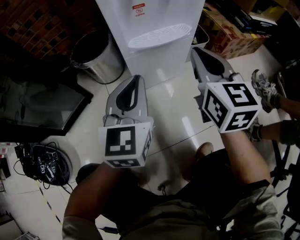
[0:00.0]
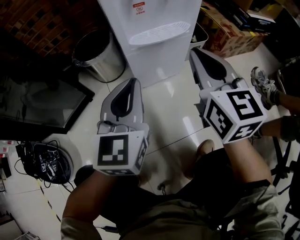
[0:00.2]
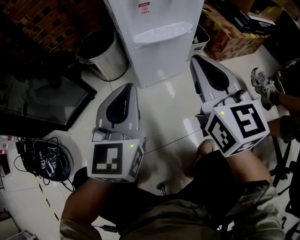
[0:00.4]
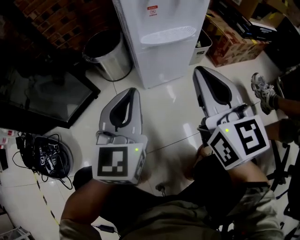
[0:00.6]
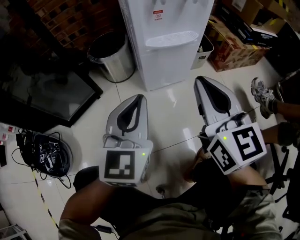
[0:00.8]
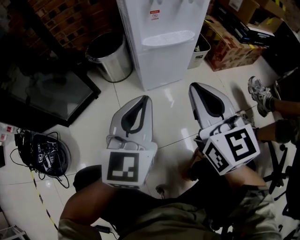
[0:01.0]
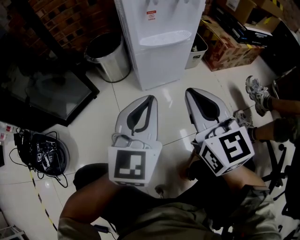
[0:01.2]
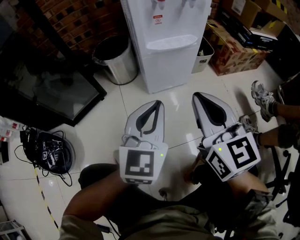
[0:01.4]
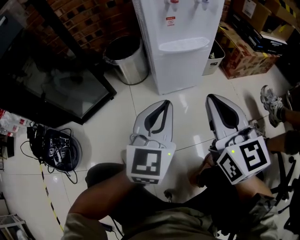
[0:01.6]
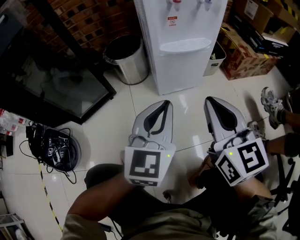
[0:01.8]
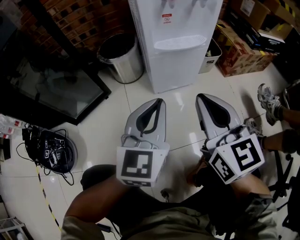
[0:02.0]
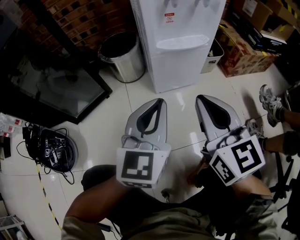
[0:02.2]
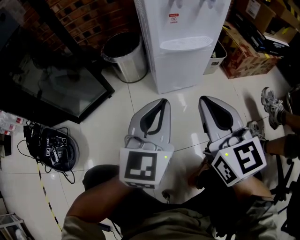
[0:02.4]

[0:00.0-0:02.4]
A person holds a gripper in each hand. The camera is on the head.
0:00.0 to 0:01.2: Both grippers move backward, some 15 cm.
0:01.2 to 0:02.4: There are only small adjustments of the grippers.

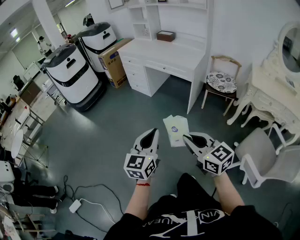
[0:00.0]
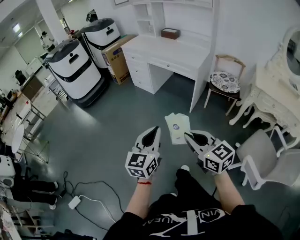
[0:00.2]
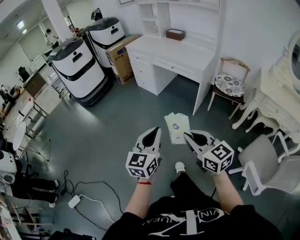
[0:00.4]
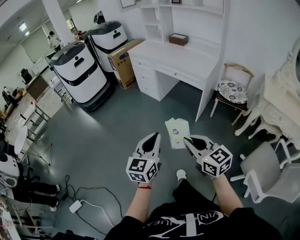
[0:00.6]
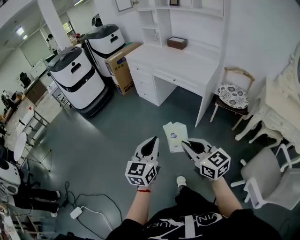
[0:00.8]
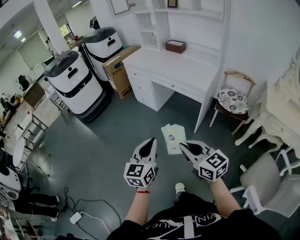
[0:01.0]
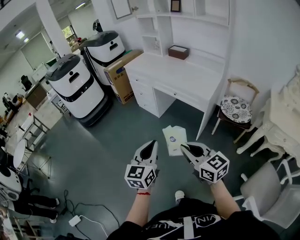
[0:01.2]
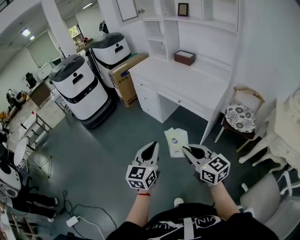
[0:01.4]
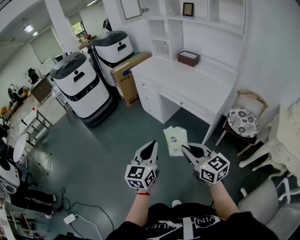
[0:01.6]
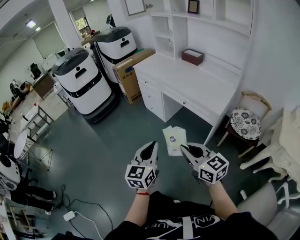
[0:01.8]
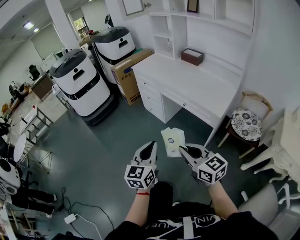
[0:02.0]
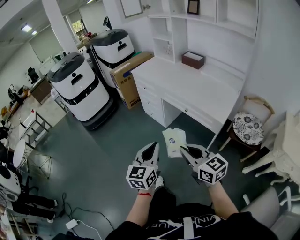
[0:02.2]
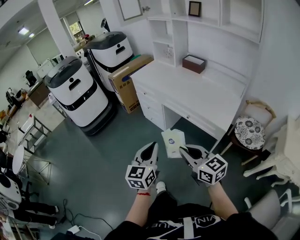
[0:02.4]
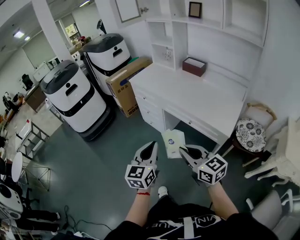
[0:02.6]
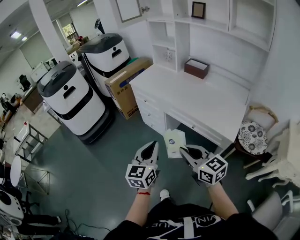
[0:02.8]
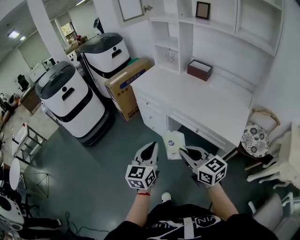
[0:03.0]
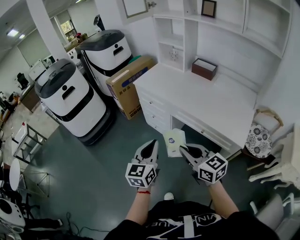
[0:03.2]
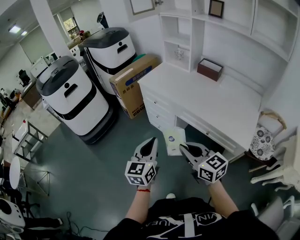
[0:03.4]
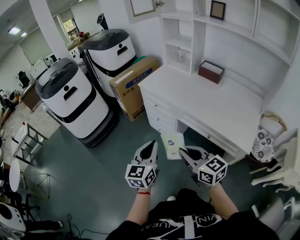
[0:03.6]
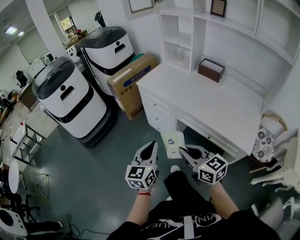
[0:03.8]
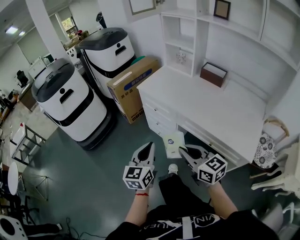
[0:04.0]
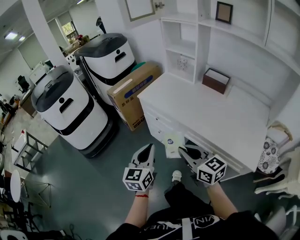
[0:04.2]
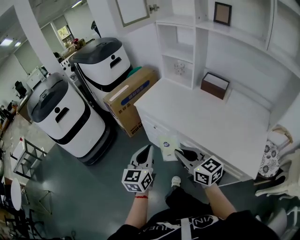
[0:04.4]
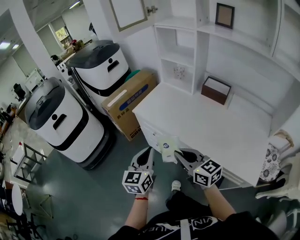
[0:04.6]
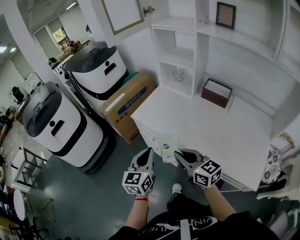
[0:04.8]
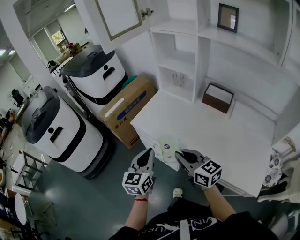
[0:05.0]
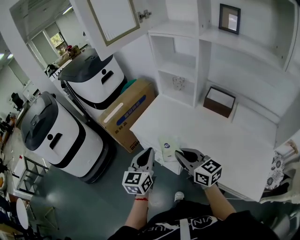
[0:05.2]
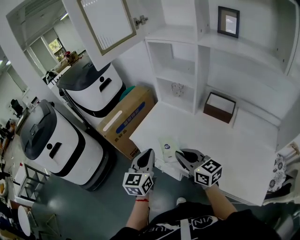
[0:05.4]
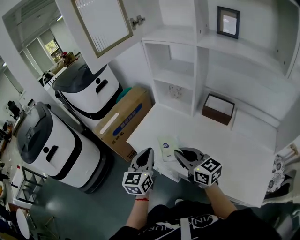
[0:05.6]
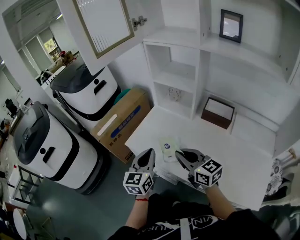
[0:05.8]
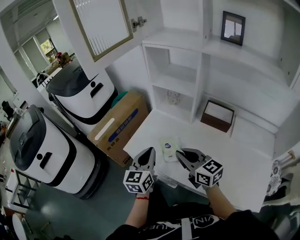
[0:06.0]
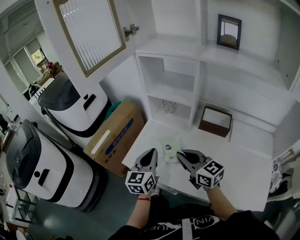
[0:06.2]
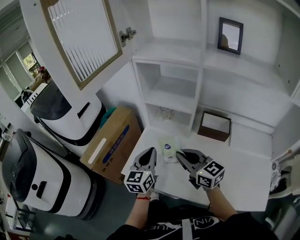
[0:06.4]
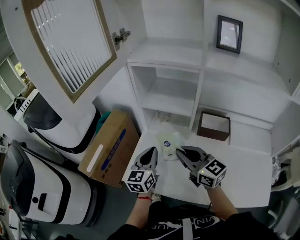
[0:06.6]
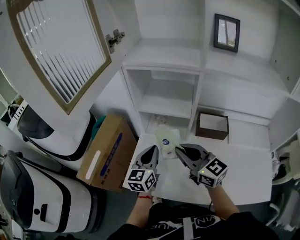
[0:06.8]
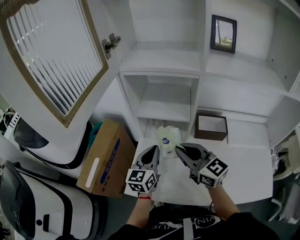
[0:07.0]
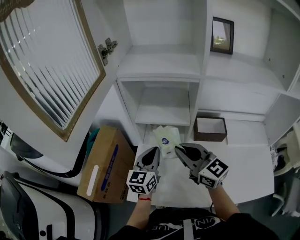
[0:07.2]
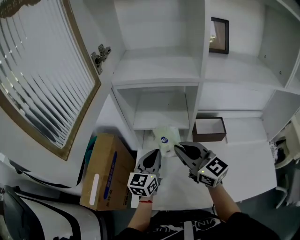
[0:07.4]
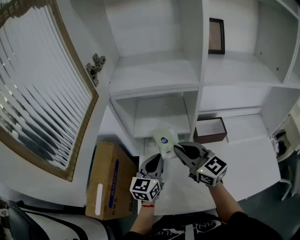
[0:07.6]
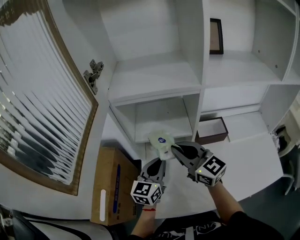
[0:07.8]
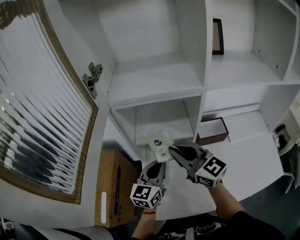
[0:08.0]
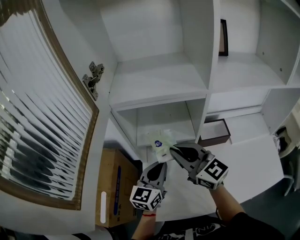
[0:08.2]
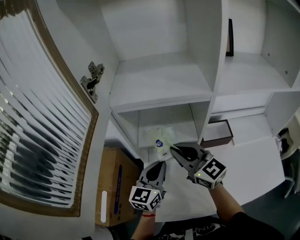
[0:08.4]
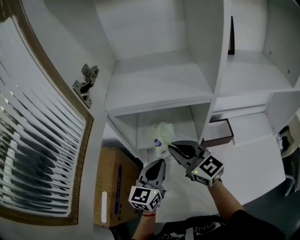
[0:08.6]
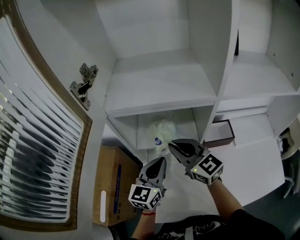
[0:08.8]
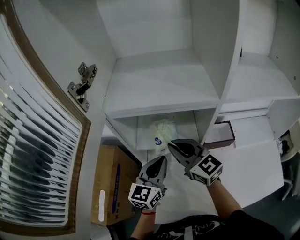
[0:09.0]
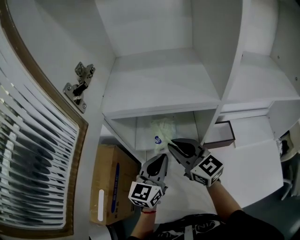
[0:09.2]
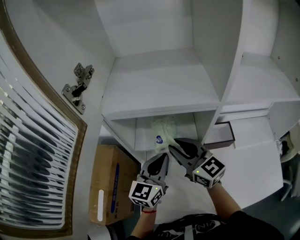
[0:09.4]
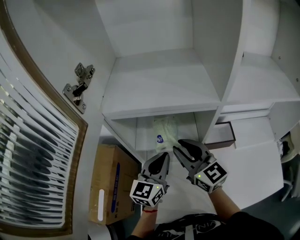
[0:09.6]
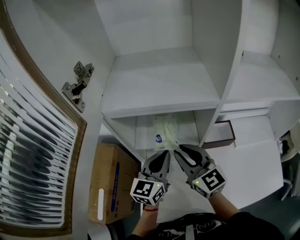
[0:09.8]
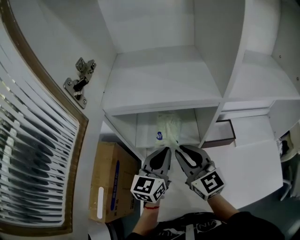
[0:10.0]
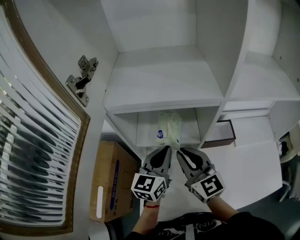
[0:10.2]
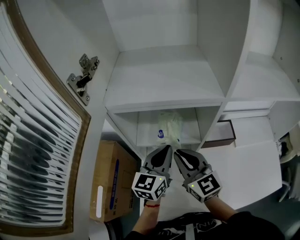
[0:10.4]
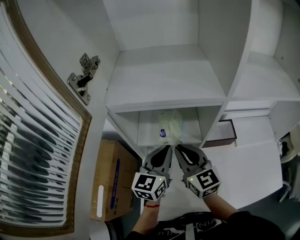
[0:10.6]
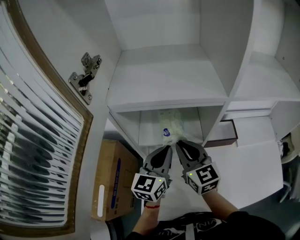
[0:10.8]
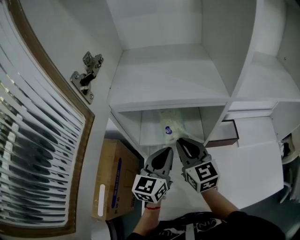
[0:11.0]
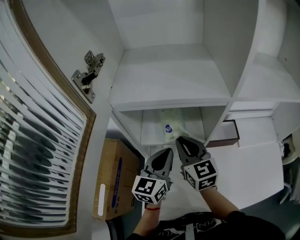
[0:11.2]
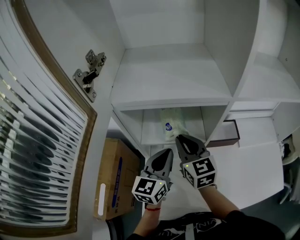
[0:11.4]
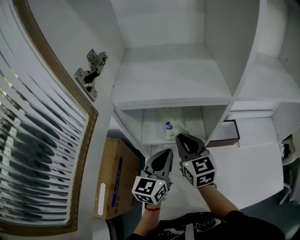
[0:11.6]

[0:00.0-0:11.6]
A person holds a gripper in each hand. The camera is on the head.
0:00.0 to 0:01.4: Both grippers move forward, roughly 30 cm.
0:01.4 to 0:02.8: The two grippers go about 30 cm forward.
0:02.8 to 0:04.4: The two grippers go approximately 30 cm forward.
0:04.4 to 0:05.8: Both grippers travel together forward, some 25 cm.
0:05.8 to 0:07.2: The right gripper changes place by some 25 cm, and swivels some 30 degrees. Meanwhile the left gripper changes place by roughly 25 cm, and changes its angle by roughly 30 degrees.
0:07.2 to 0:08.8: The left gripper travels forward by some 5 cm. Meanwhile the right gripper moves forward, roughly 15 cm.
0:08.8 to 0:10.2: There are only small adjustments of the grippers.
0:10.2 to 0:11.6: The right gripper shifts some 5 cm forward.

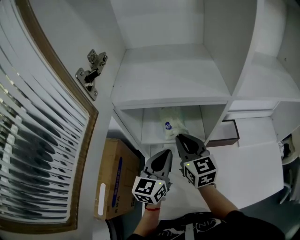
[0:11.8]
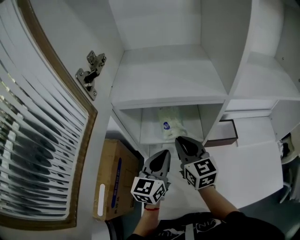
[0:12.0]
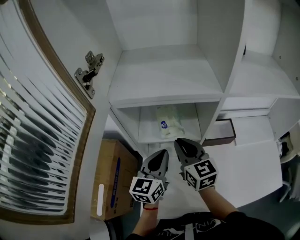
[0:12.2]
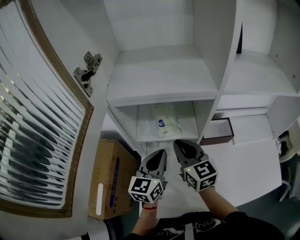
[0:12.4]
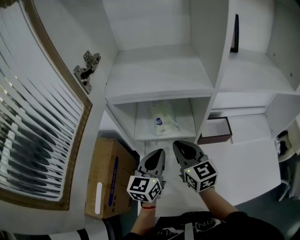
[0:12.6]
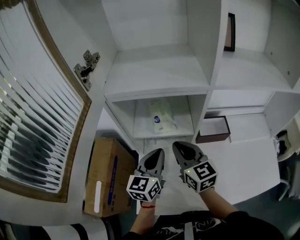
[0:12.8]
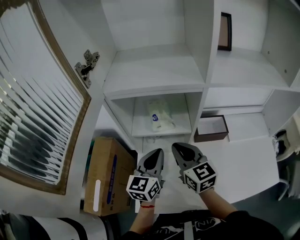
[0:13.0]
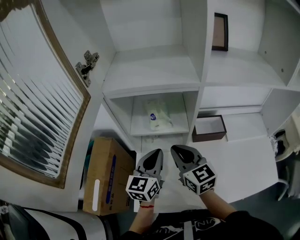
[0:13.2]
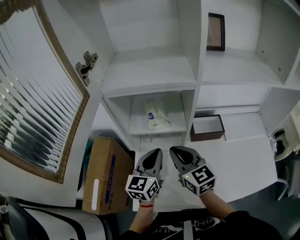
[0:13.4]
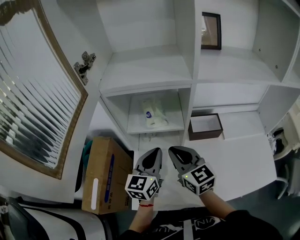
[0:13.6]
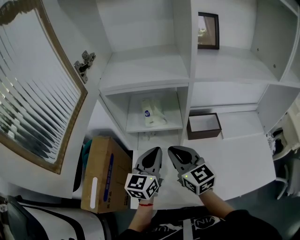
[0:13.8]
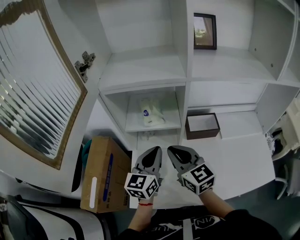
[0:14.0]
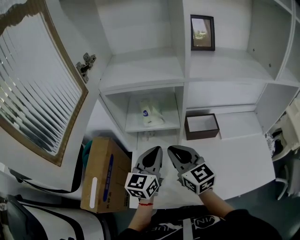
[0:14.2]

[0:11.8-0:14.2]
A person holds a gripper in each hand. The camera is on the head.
0:11.8 to 0:13.0: The right gripper travels backward by roughly 10 cm.
0:13.0 to 0:14.2: The left gripper changes place by roughly 5 cm. The right gripper shifts approximately 5 cm backward.

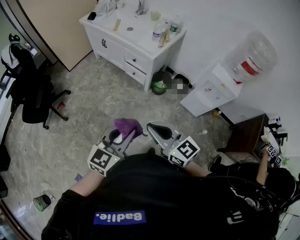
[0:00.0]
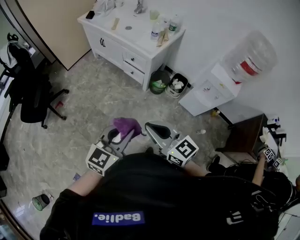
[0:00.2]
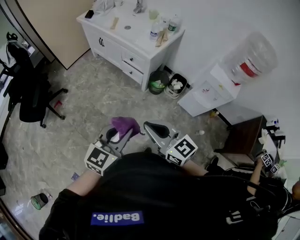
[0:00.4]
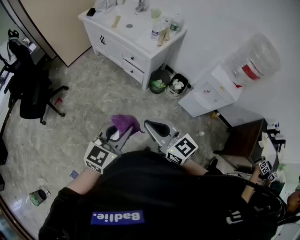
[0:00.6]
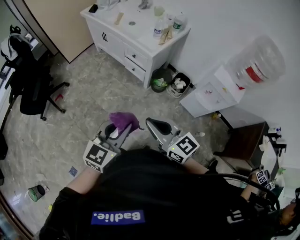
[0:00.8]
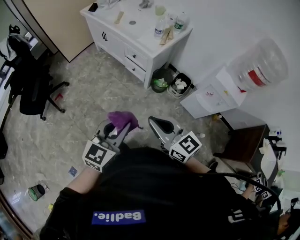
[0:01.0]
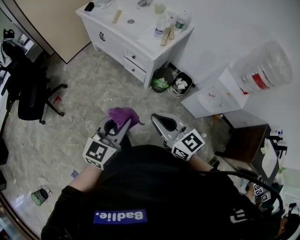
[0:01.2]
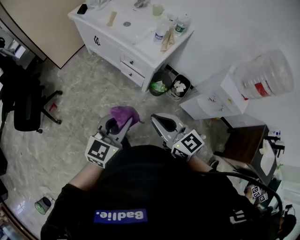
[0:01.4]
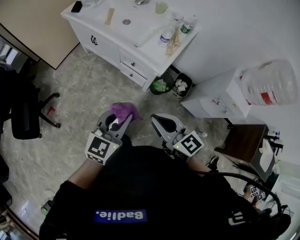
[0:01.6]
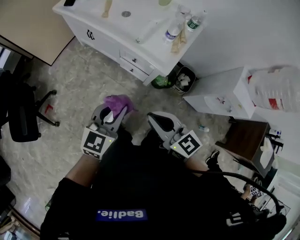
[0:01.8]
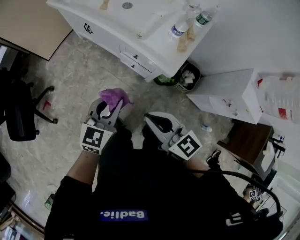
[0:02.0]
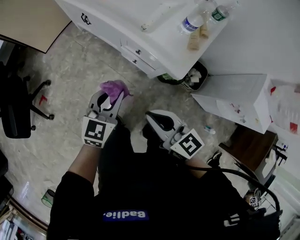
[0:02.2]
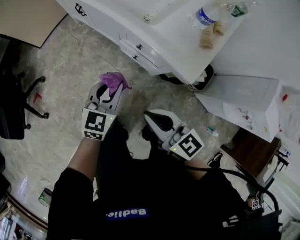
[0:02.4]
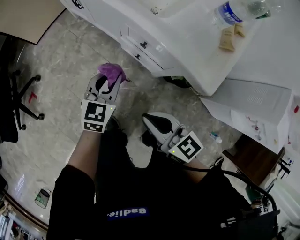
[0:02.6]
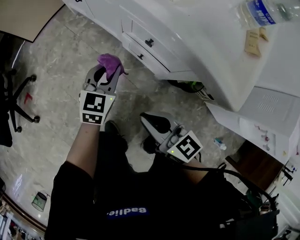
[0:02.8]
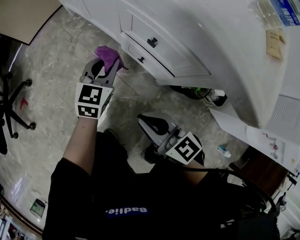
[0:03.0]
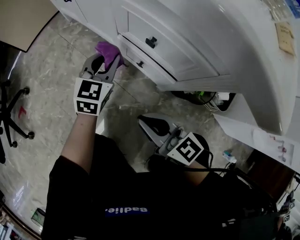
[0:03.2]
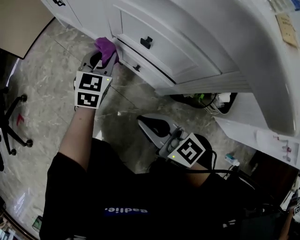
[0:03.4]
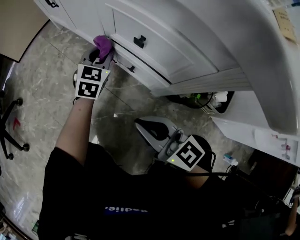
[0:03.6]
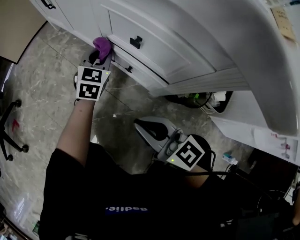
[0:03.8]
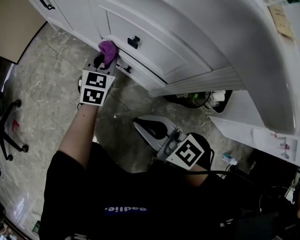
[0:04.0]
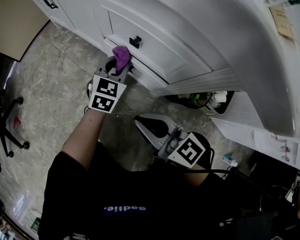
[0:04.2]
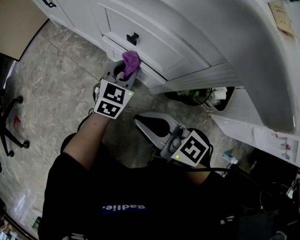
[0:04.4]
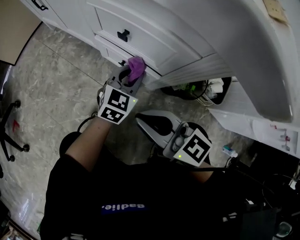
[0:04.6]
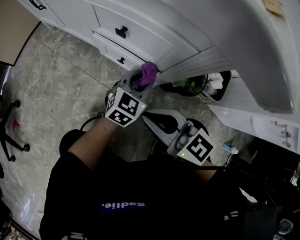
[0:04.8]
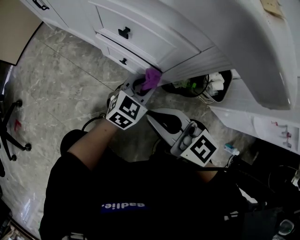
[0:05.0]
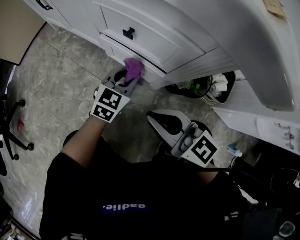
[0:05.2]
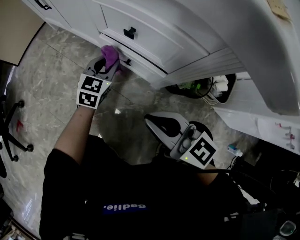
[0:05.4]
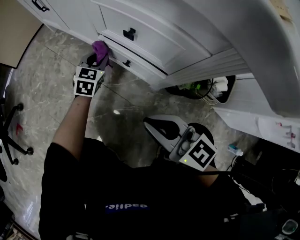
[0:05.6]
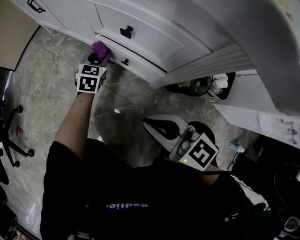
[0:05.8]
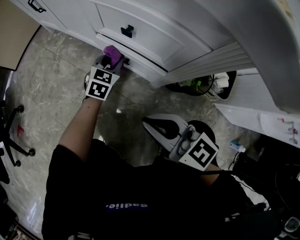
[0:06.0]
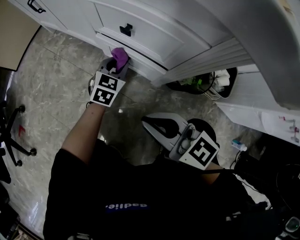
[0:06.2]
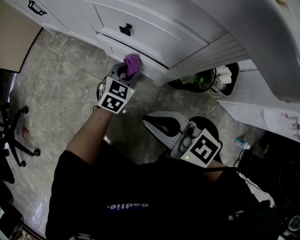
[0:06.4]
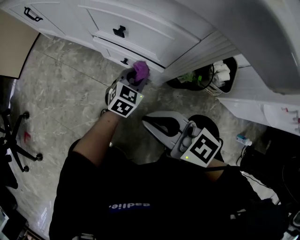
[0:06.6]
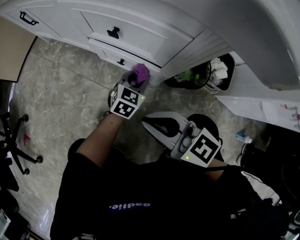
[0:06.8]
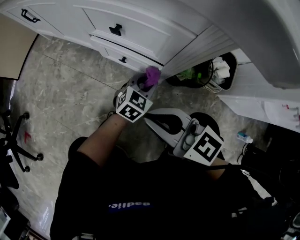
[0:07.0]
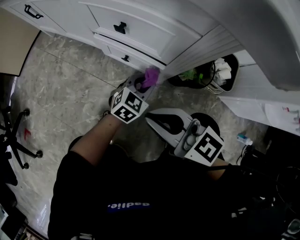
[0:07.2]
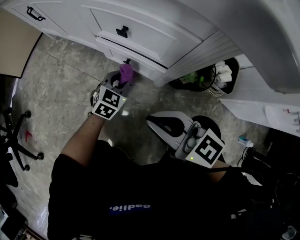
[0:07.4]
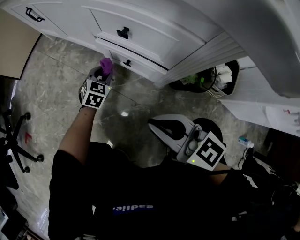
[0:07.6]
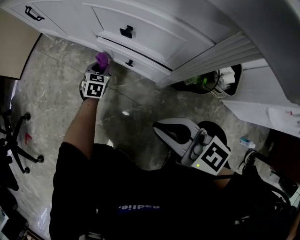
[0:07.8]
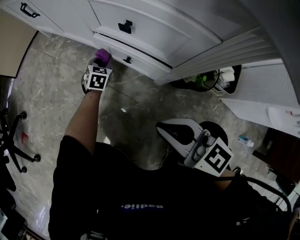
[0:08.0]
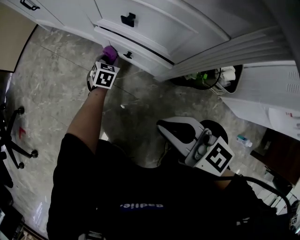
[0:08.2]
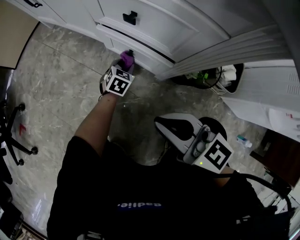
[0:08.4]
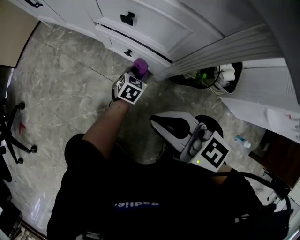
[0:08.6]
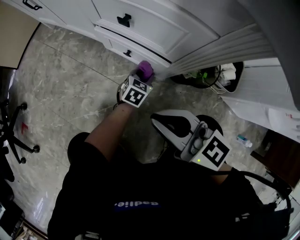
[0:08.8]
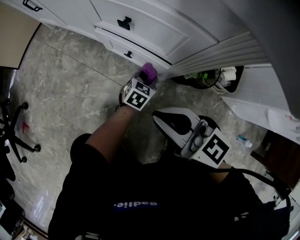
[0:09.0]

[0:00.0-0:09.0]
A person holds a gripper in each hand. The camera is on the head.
0:00.0 to 0:01.6: Both grippers move forward, about 30 cm.
0:01.6 to 0:03.0: The left gripper shifts some 70 cm downward and forward, and turns by approximately 20 degrees, while the right gripper shifts some 50 cm downward.
0:03.0 to 0:04.4: The left gripper moves to the right and downward, approximately 15 cm, while the right gripper ends up about 5 cm from where it was.
0:04.4 to 0:06.0: The left gripper swings left and right, about 20 cm each way, with 2 reversals.
0:06.0 to 0:07.6: The left gripper moves roughly 15 cm to the right and comes back.
0:07.6 to 0:09.0: The left gripper goes about 20 cm to the right and backward, and swivels about 20 degrees.
